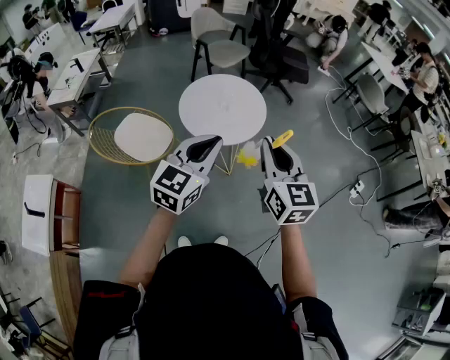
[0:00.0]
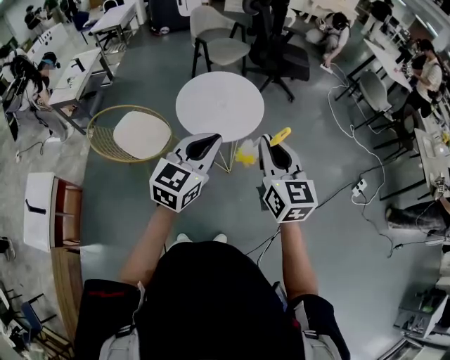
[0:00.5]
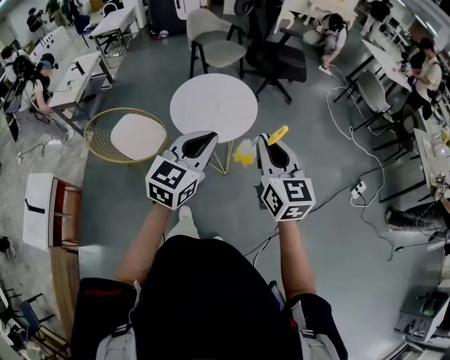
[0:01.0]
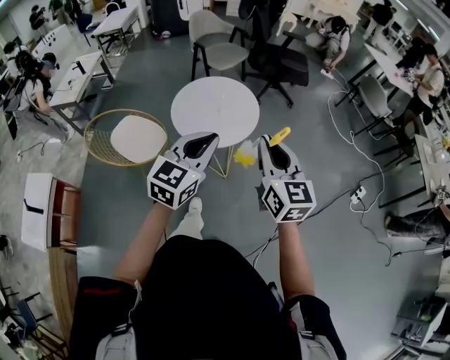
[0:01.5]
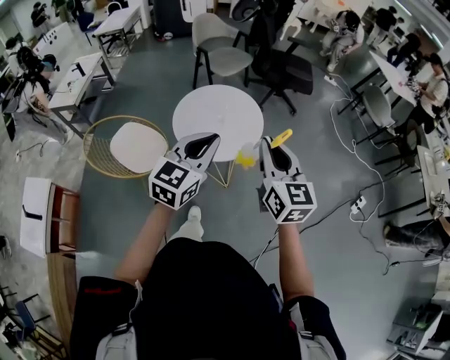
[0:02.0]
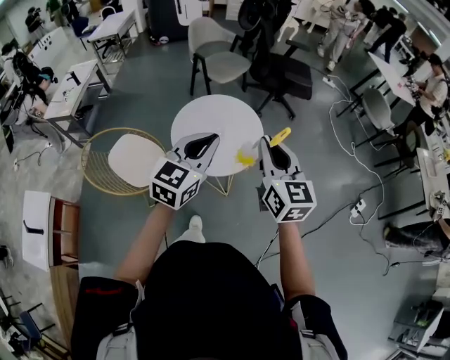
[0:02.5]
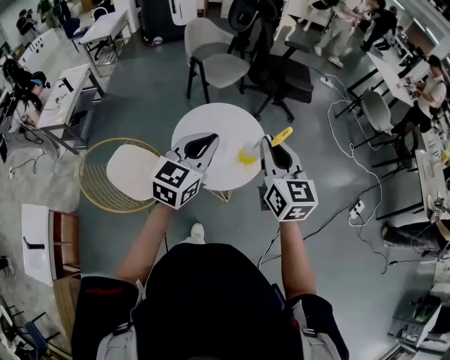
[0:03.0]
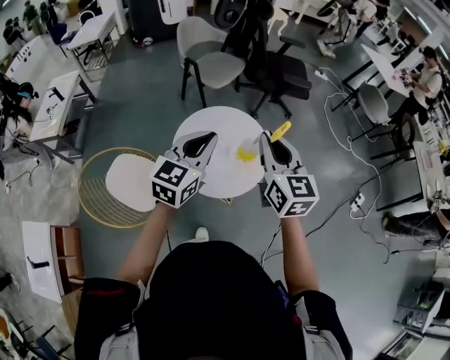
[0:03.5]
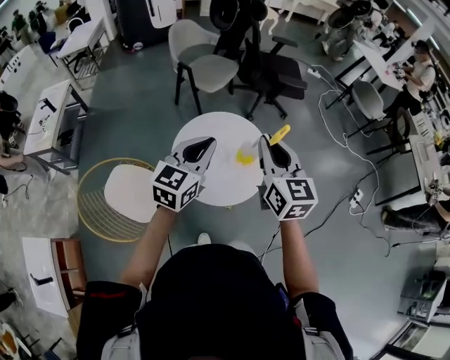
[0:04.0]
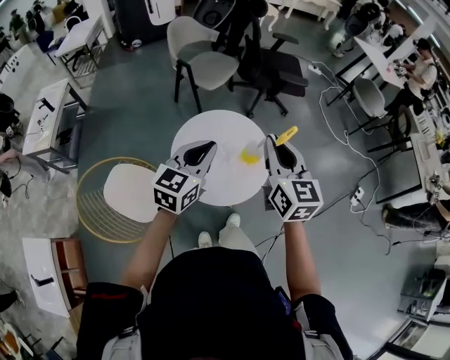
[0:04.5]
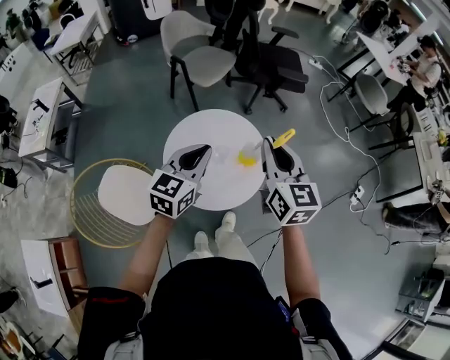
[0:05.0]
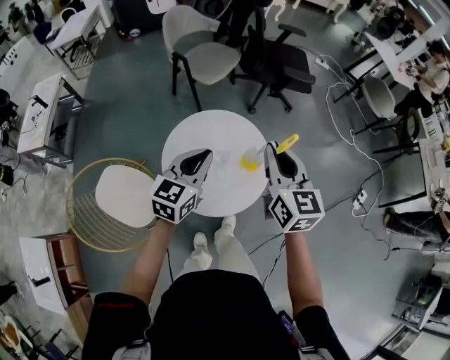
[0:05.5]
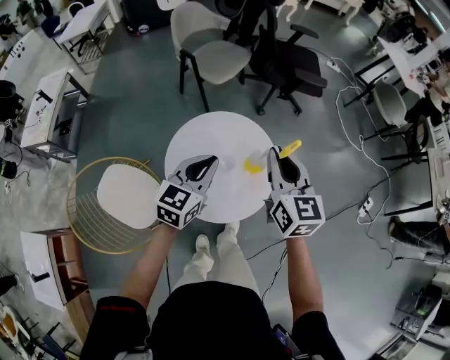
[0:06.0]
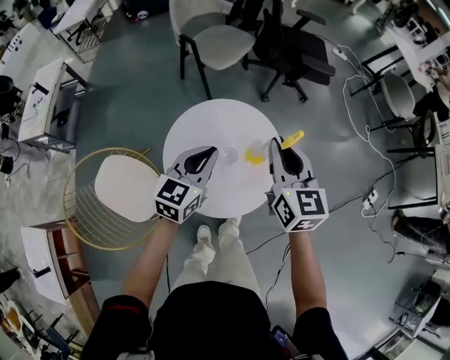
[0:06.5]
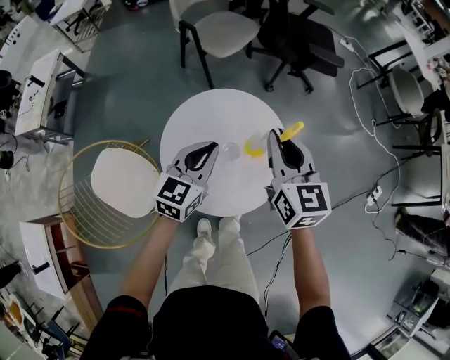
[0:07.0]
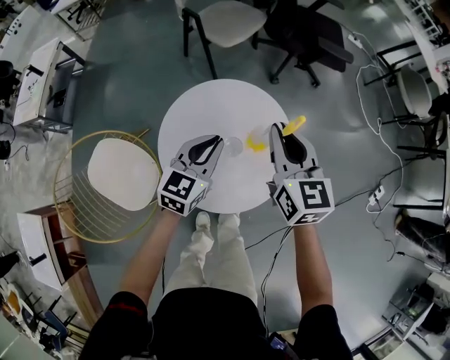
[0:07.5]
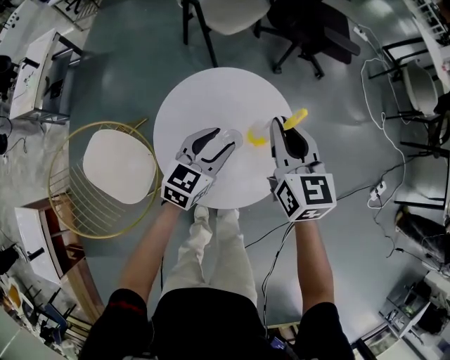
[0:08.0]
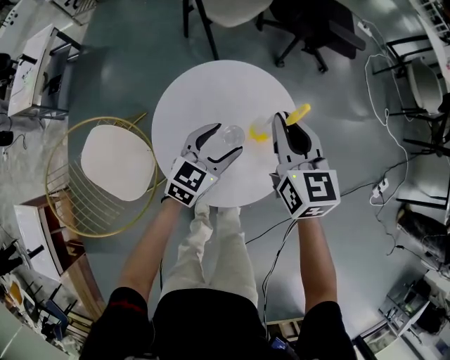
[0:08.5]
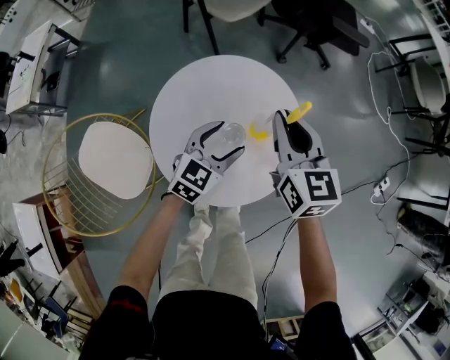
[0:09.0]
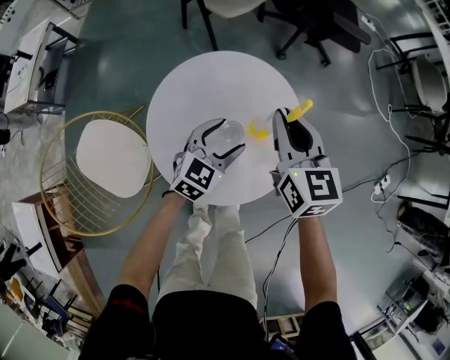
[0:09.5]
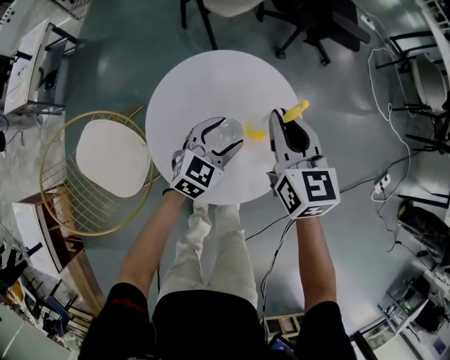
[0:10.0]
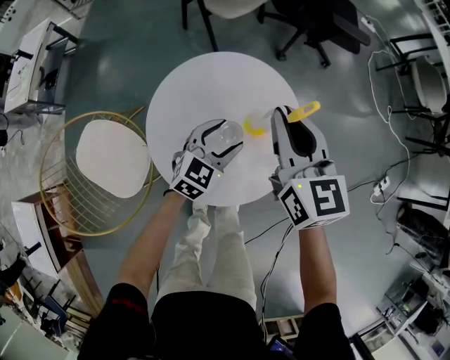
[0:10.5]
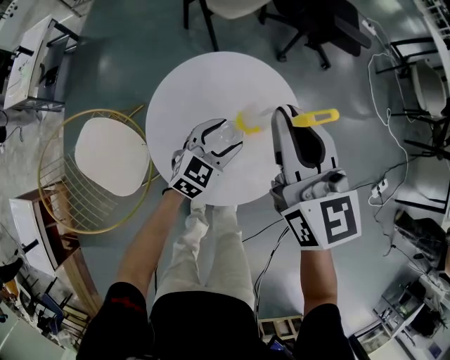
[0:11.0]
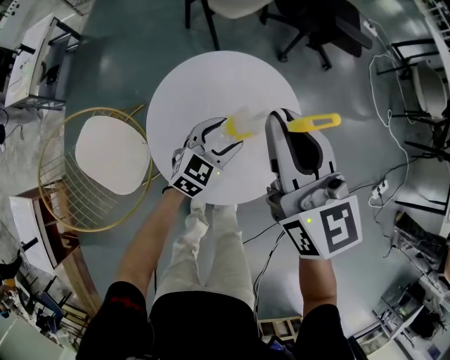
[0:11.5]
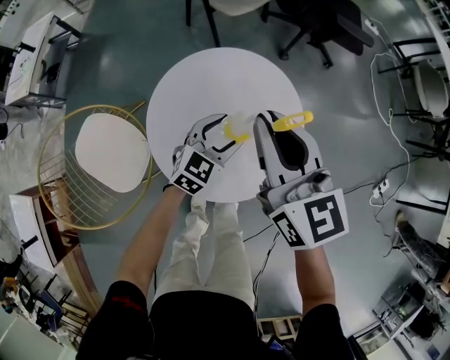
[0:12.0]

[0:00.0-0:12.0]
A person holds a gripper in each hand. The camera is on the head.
0:00.0 to 0:02.0: The two grippers go approximately 10 cm forward.
0:02.0 to 0:04.0: The two grippers go about 25 cm forward and to the left.
0:04.0 to 0:06.0: The left gripper shifts approximately 15 cm downward and forward; the right gripper heads forward and downward, covering about 15 cm.
0:06.0 to 0:08.0: The left gripper shifts about 15 cm downward, and opens up; the right gripper goes about 15 cm downward and forward.
0:08.0 to 0:10.0: The left gripper goes some 5 cm downward.
0:10.0 to 0:12.0: The right gripper heads upward, covering some 10 cm.

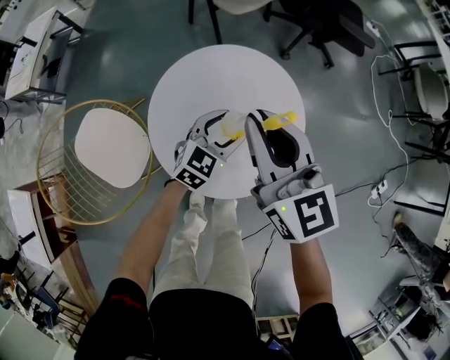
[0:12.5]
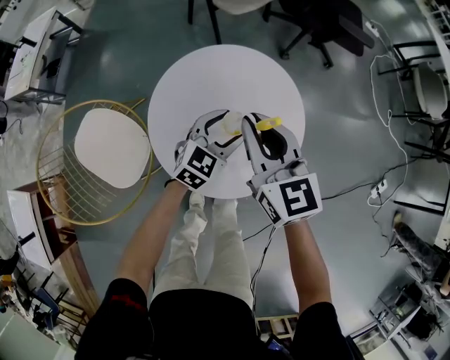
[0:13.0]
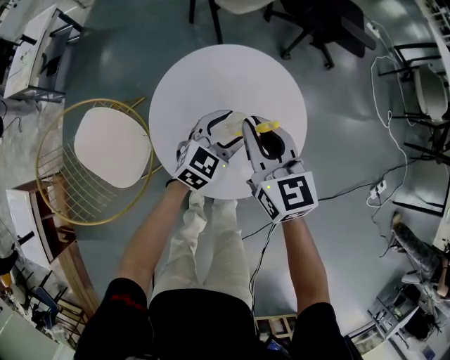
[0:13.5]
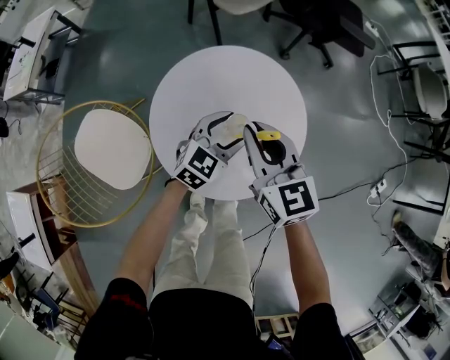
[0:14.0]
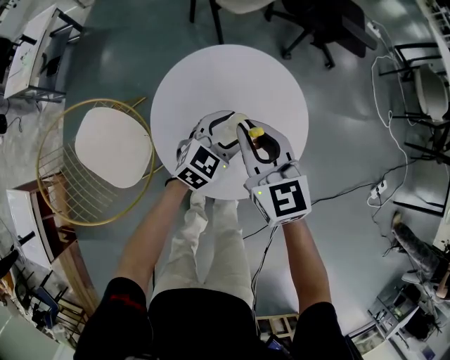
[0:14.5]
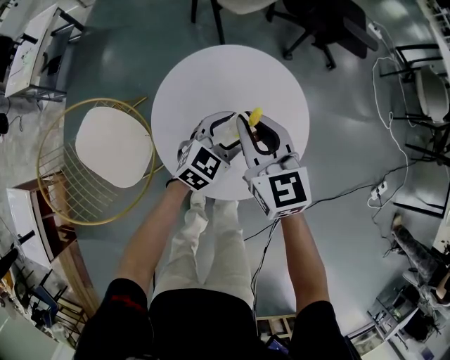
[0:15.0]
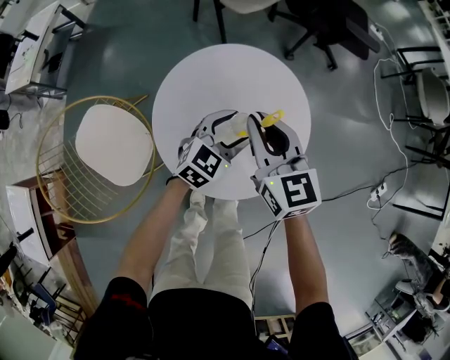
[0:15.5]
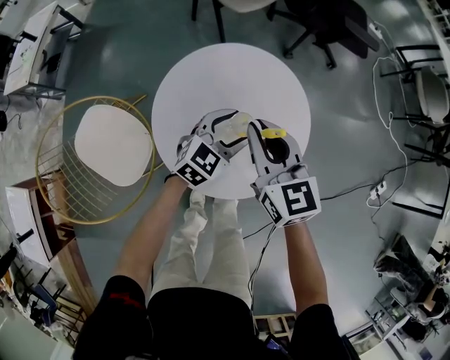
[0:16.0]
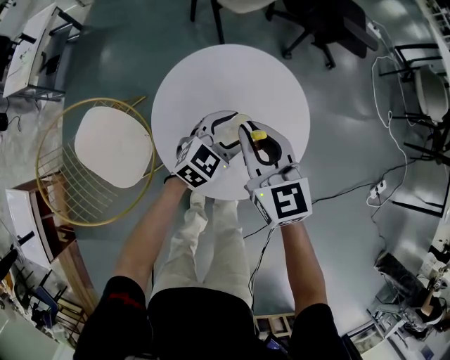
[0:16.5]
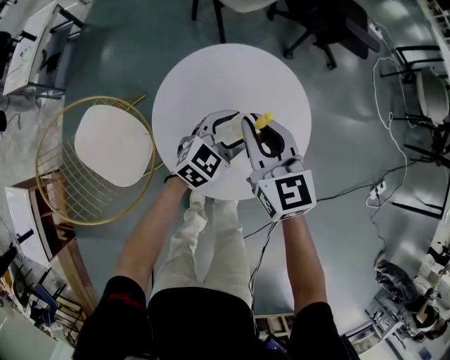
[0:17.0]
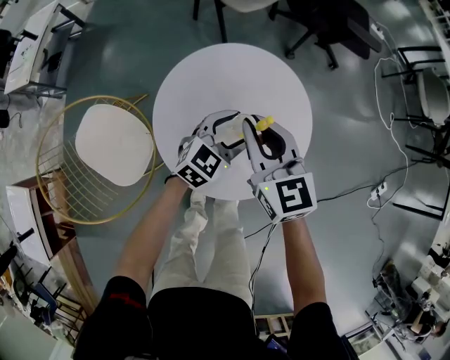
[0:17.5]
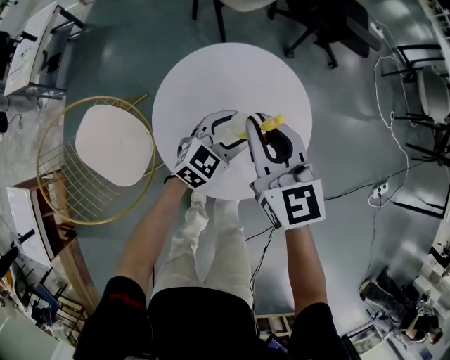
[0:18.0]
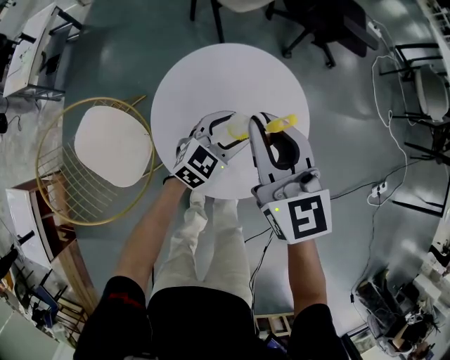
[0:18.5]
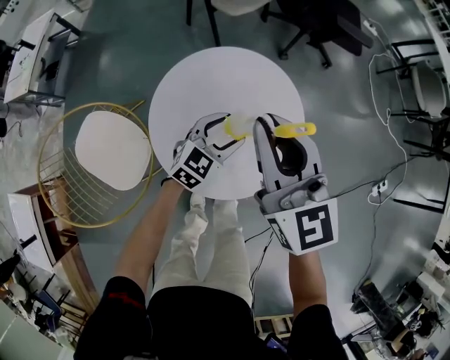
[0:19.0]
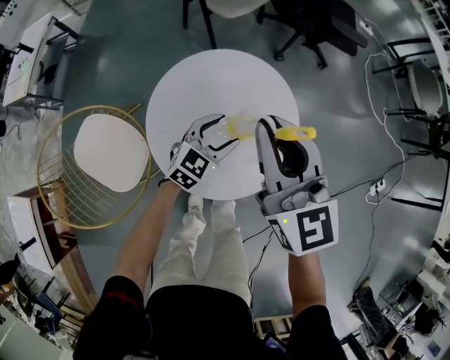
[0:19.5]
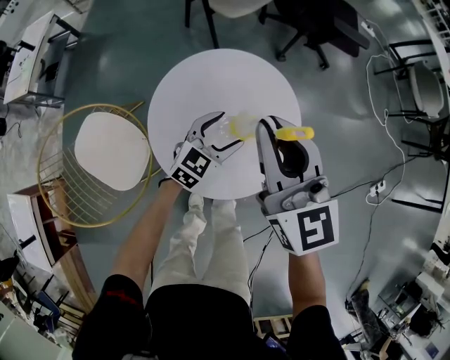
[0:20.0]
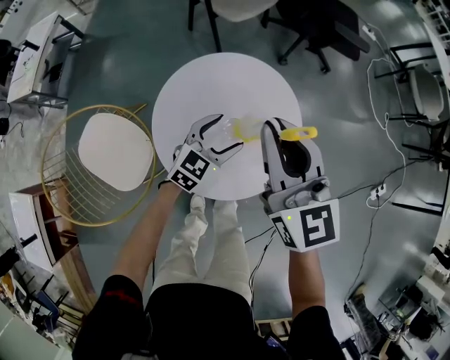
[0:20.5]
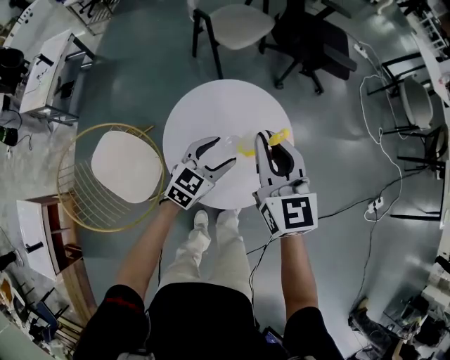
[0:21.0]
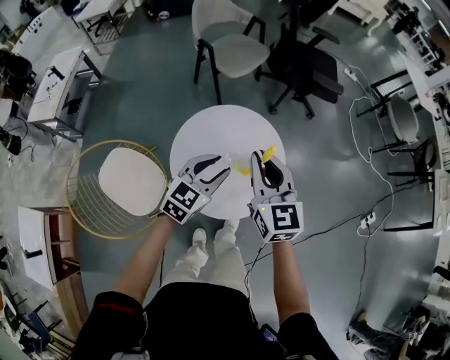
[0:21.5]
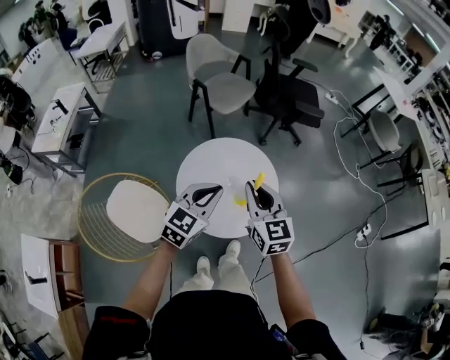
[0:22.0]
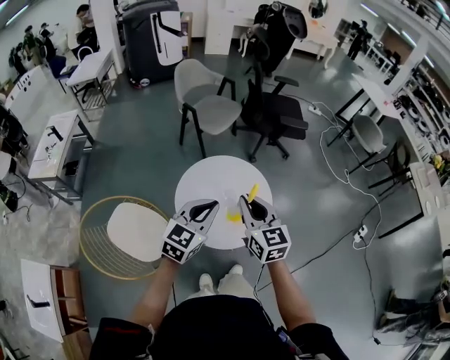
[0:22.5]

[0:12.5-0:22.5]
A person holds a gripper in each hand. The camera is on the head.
0:12.5 to 0:14.5: The right gripper is displaced downward by about 10 cm.
0:14.5 to 0:16.5: There are only small adjustments of the grippers.
0:16.5 to 0:18.5: The right gripper moves upward, some 10 cm.
0:18.5 to 0:20.5: The right gripper moves roughly 5 cm.
0:20.5 to 0:22.5: The right gripper is displaced backward by some 10 cm; the left gripper moves upward and backward, about 30 cm, and closes.

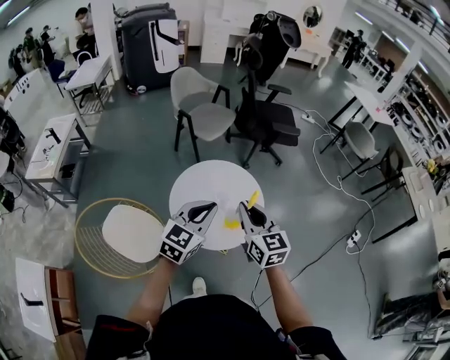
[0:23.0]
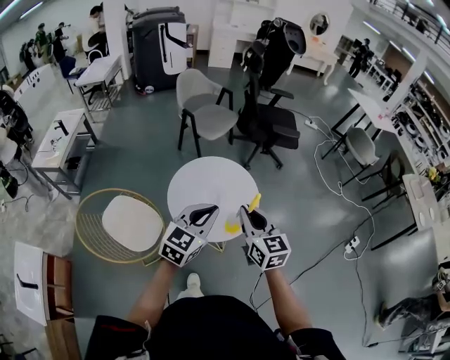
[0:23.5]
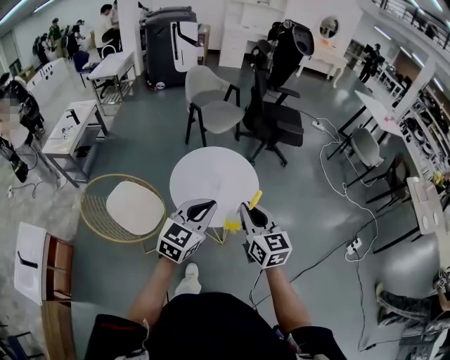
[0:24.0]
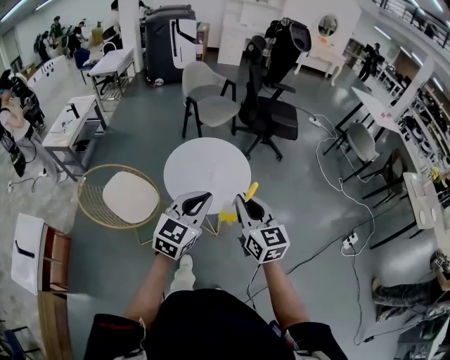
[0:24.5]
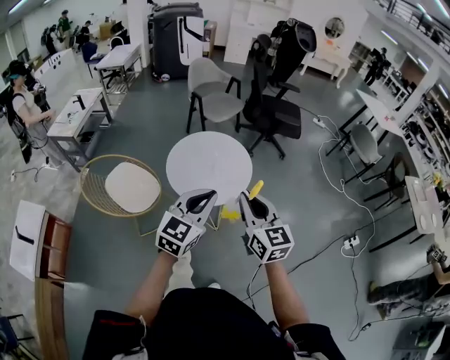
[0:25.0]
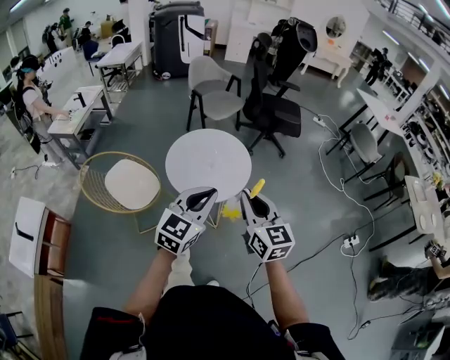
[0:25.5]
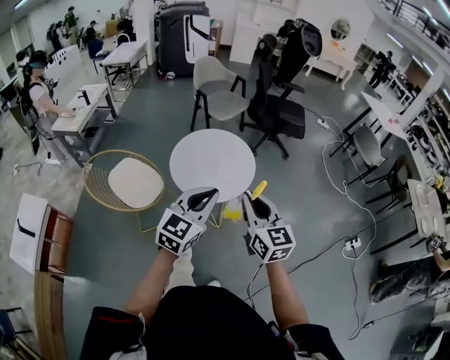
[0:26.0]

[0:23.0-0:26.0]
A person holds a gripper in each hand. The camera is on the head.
0:23.0 to 0:24.5: Both grippers move backward and to the right, approximately 20 cm.
0:24.5 to 0:26.0: The grippers make only small movements.

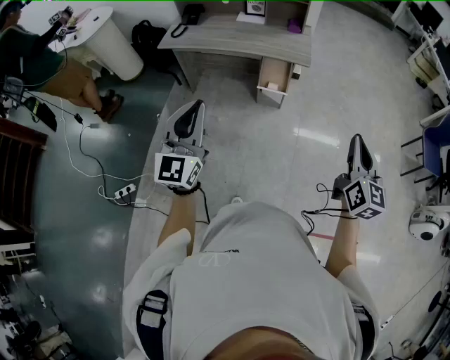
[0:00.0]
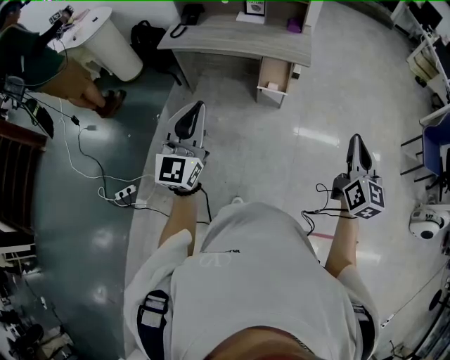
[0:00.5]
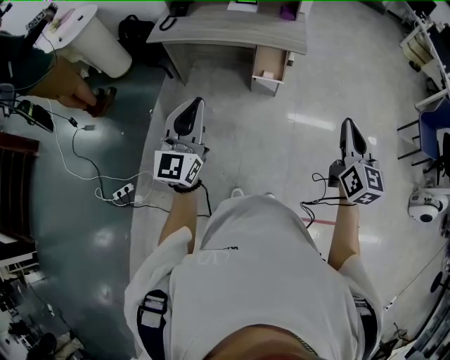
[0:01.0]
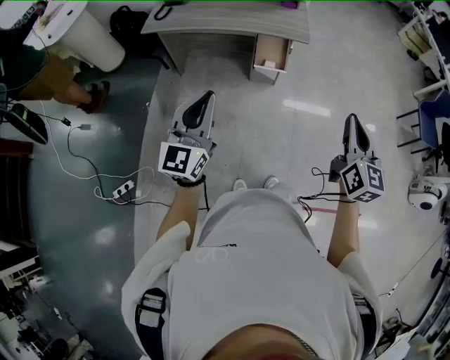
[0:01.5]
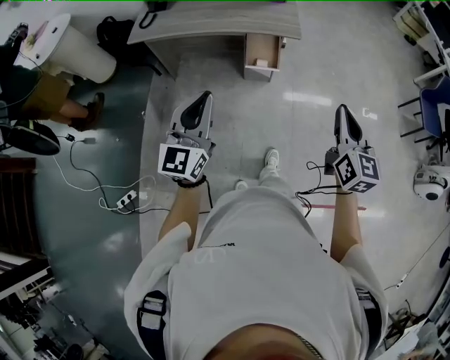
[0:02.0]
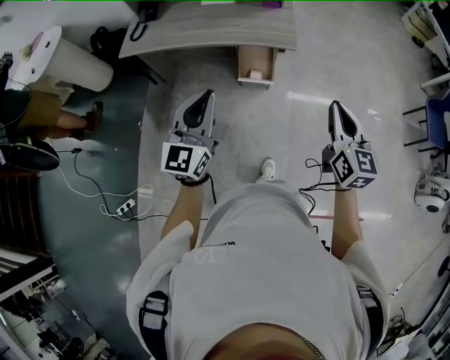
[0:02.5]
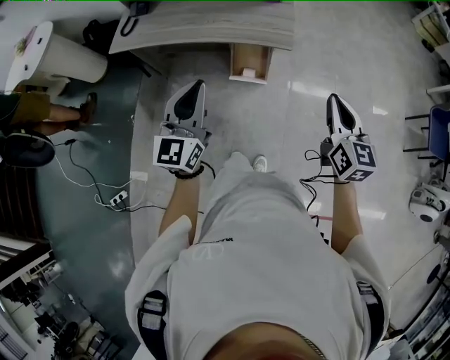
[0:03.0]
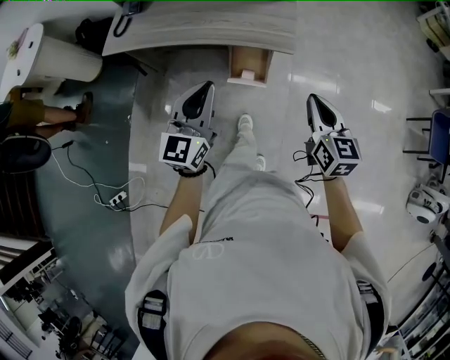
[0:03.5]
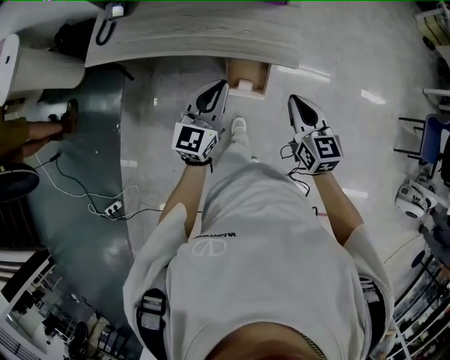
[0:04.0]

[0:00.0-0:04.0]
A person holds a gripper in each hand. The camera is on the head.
0:00.0 to 0:02.0: The left gripper goes roughly 15 cm forward and downward; the right gripper heads to the left and forward, covering some 10 cm.
0:02.0 to 0:04.0: The grippers both shift forward and downward by some 40 cm. The right gripper rotates about 20 degrees.
